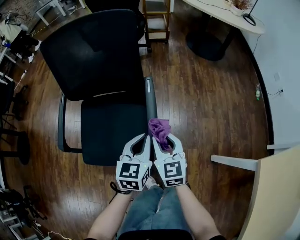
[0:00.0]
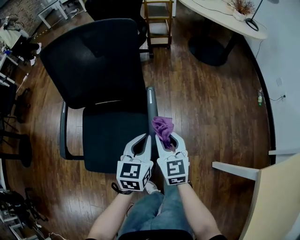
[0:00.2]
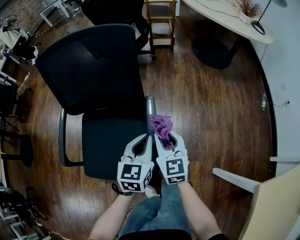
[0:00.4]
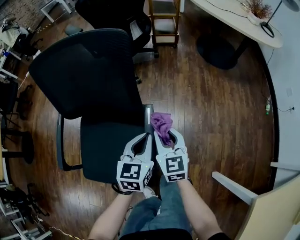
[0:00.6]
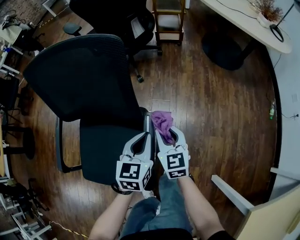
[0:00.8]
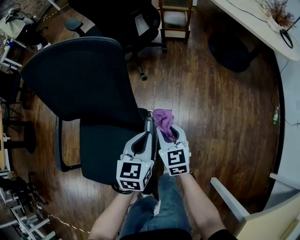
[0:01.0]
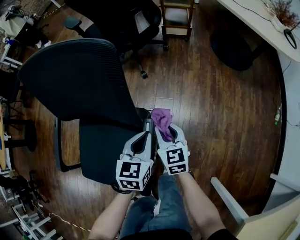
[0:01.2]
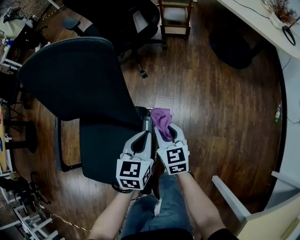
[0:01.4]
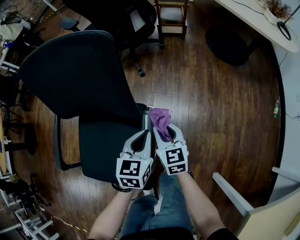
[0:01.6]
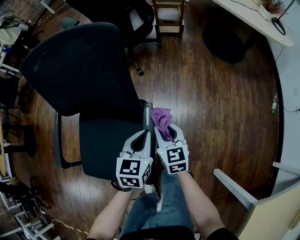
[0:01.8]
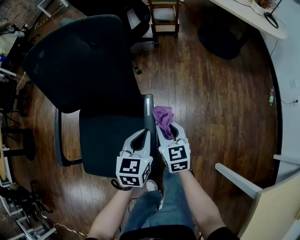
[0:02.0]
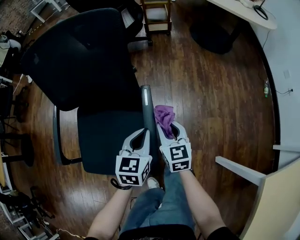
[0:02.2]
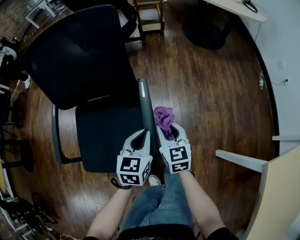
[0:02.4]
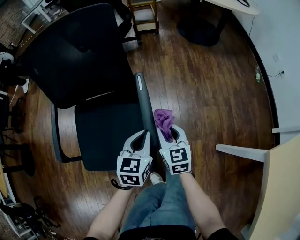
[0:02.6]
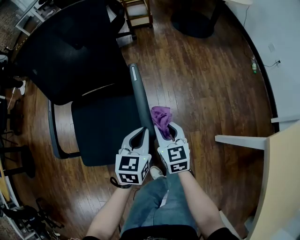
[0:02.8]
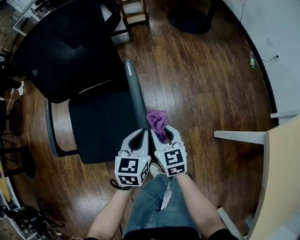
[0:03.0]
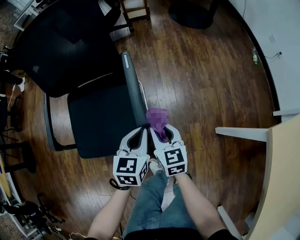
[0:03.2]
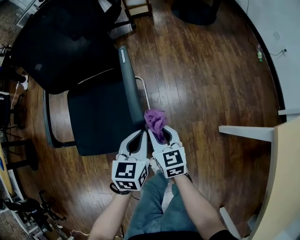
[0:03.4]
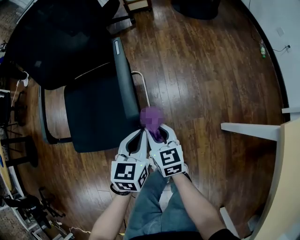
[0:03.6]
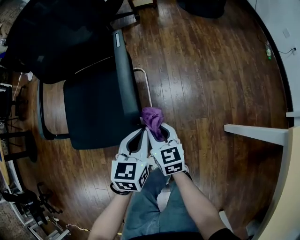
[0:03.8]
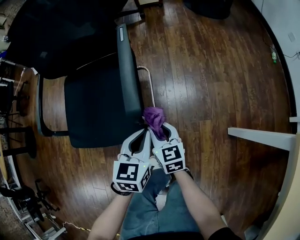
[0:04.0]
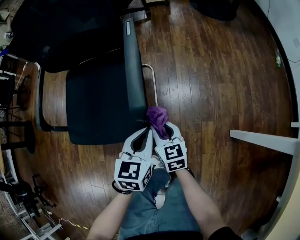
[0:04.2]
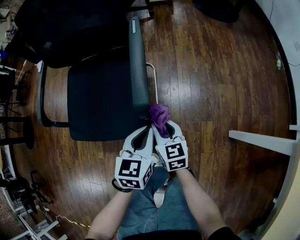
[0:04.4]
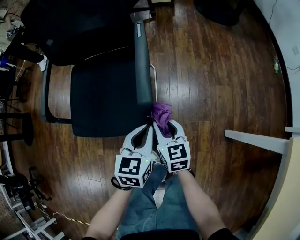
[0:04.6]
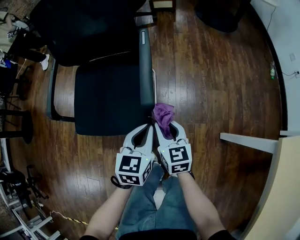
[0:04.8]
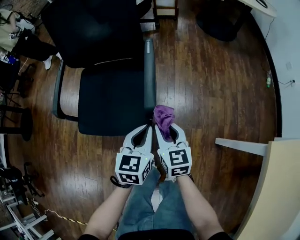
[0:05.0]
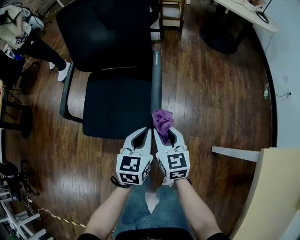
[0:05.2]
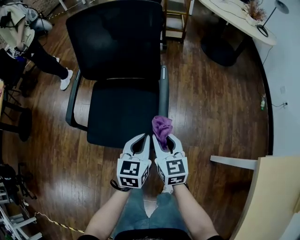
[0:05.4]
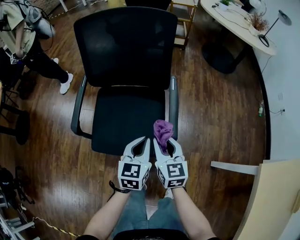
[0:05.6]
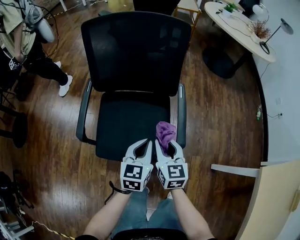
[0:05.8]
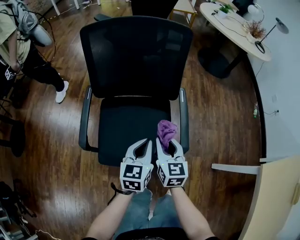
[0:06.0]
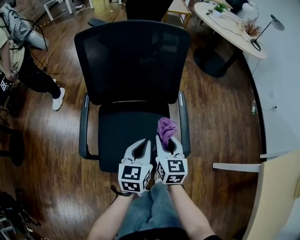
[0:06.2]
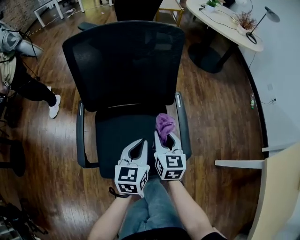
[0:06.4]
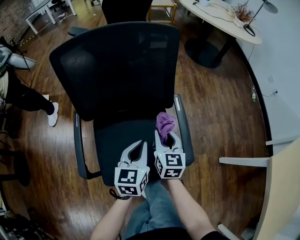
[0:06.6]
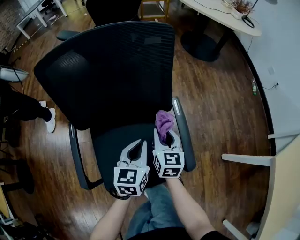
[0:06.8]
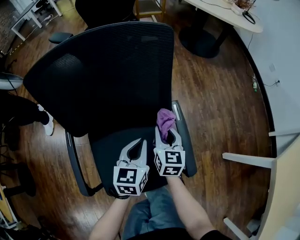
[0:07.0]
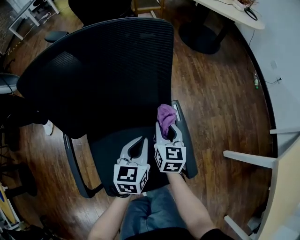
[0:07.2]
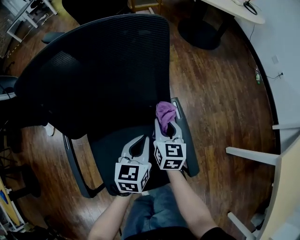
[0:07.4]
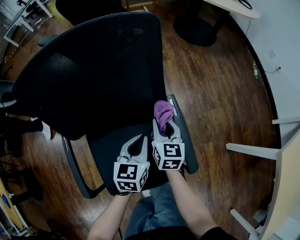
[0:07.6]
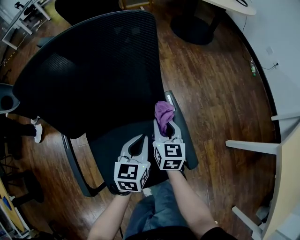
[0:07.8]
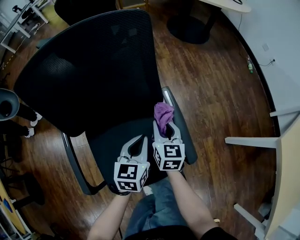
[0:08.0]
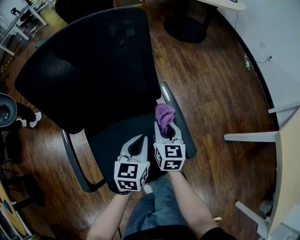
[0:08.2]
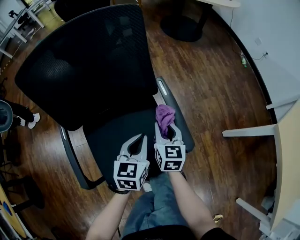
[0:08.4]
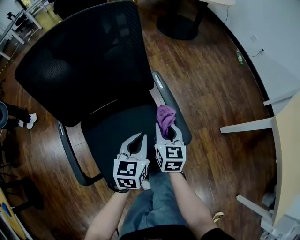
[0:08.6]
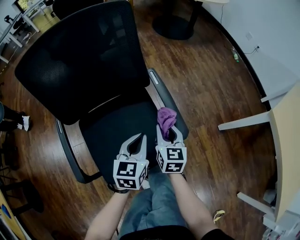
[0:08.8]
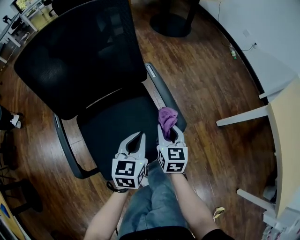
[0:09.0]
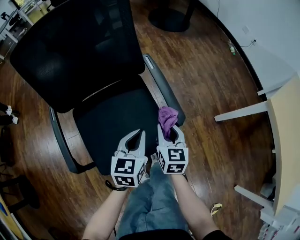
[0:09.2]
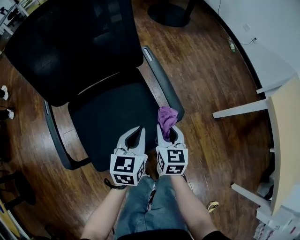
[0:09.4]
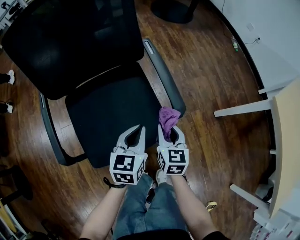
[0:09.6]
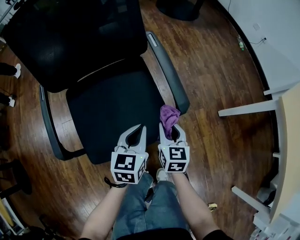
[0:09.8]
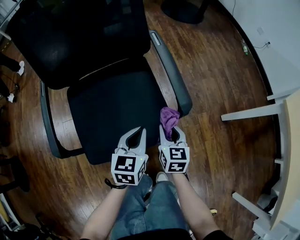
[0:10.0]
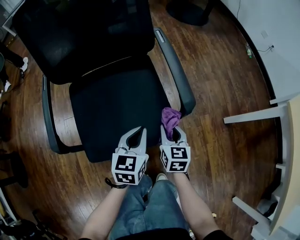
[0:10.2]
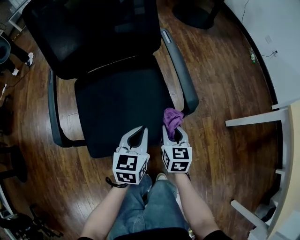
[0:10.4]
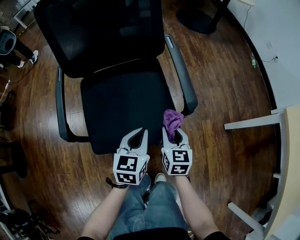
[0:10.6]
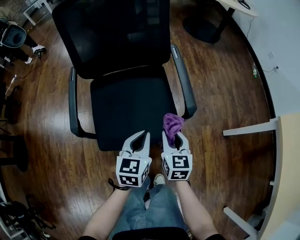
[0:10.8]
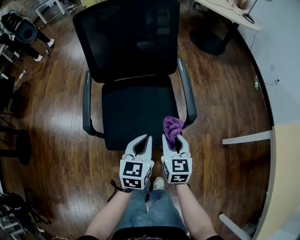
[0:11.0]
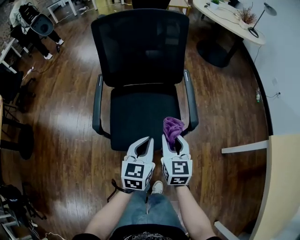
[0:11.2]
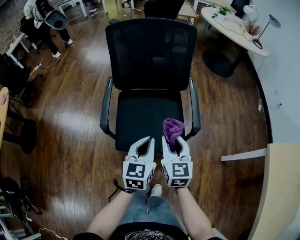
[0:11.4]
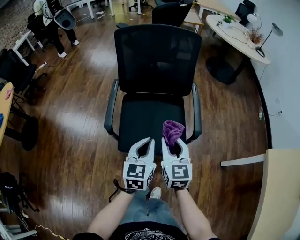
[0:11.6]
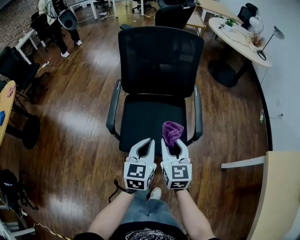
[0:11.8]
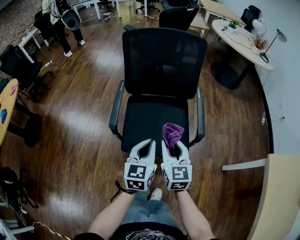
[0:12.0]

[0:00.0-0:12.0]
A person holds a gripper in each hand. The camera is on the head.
0:00.0 to 0:01.6: Both grippers move forward, about 20 cm.
0:01.6 to 0:03.0: The grippers both shift backward by some 25 cm.
0:03.0 to 0:04.4: The right gripper moves downward, some 15 cm, while the left gripper moves downward and backward, about 15 cm.
0:04.4 to 0:06.0: The left gripper heads upward, to the left and forward, covering approximately 30 cm; the right gripper goes approximately 30 cm upward and to the left.
0:06.0 to 0:07.6: The right gripper travels forward and downward by approximately 25 cm, and turns by approximately 20 degrees, while the left gripper travels forward by some 20 cm.
0:07.6 to 0:09.0: The right gripper goes about 20 cm backward and to the right. Meanwhile the left gripper moves backward, about 15 cm.
0:09.0 to 0:10.4: Both grippers travel together downward and backward, approximately 15 cm.
0:10.4 to 0:12.0: The right gripper goes about 35 cm upward and to the left, and rotates about 30 degrees. Meanwhile the left gripper travels upward by about 25 cm, and turns by roughly 20 degrees.

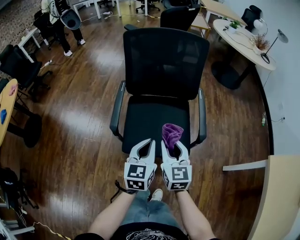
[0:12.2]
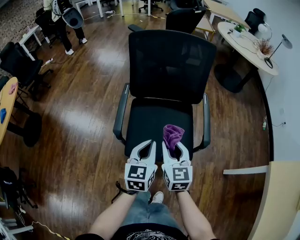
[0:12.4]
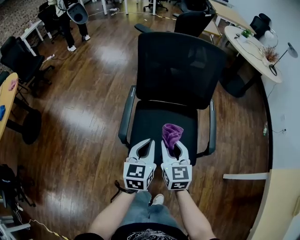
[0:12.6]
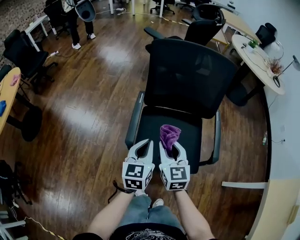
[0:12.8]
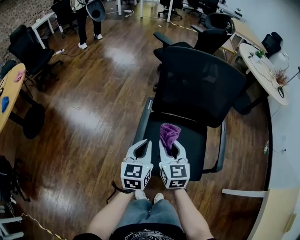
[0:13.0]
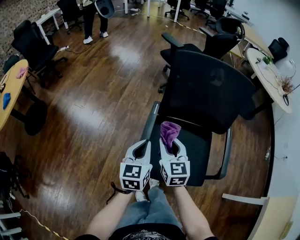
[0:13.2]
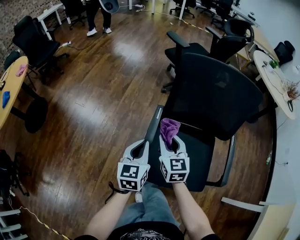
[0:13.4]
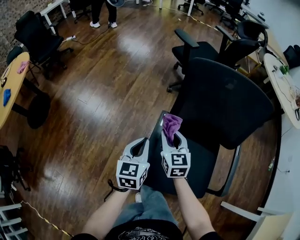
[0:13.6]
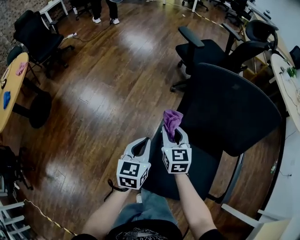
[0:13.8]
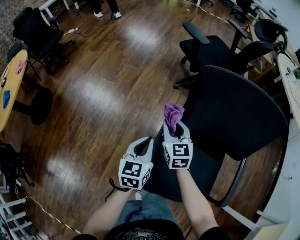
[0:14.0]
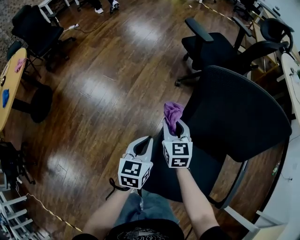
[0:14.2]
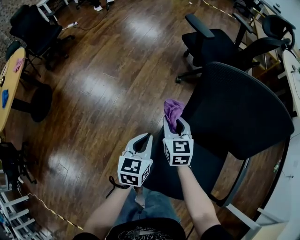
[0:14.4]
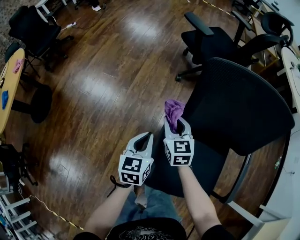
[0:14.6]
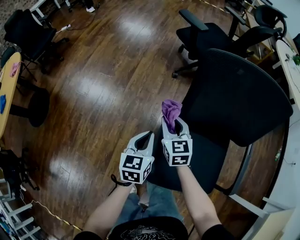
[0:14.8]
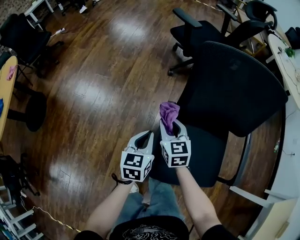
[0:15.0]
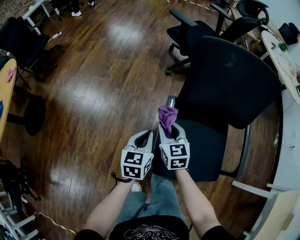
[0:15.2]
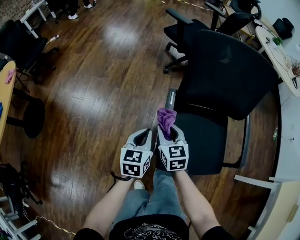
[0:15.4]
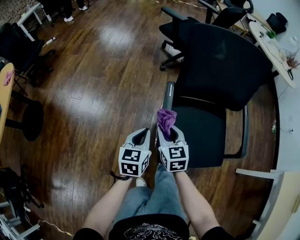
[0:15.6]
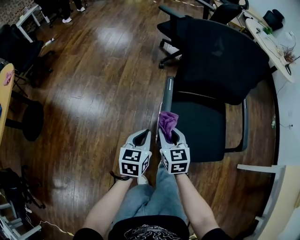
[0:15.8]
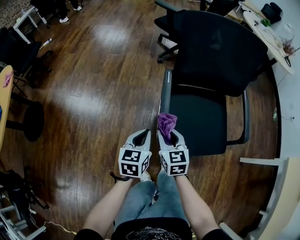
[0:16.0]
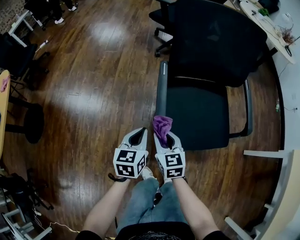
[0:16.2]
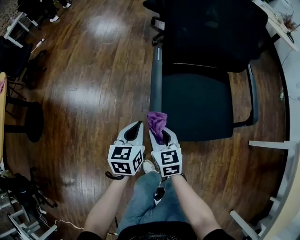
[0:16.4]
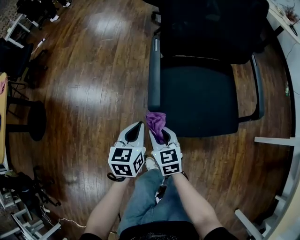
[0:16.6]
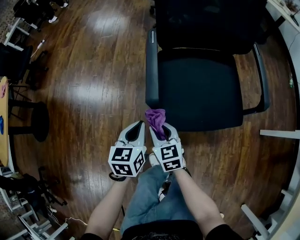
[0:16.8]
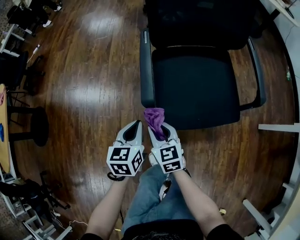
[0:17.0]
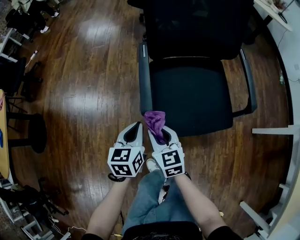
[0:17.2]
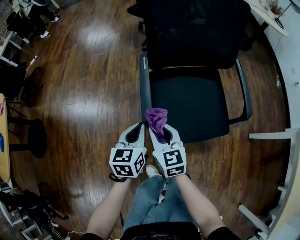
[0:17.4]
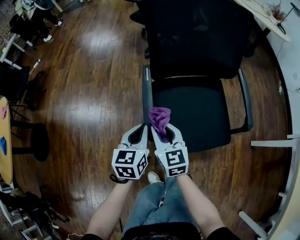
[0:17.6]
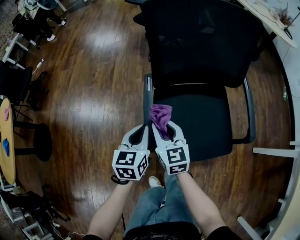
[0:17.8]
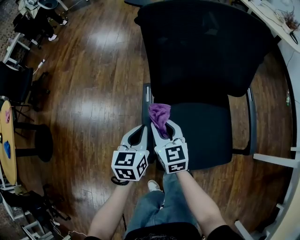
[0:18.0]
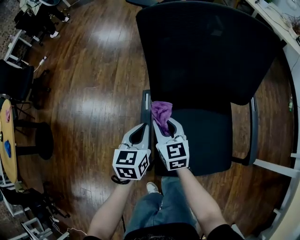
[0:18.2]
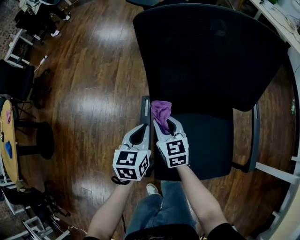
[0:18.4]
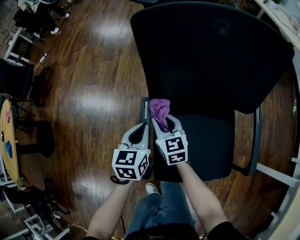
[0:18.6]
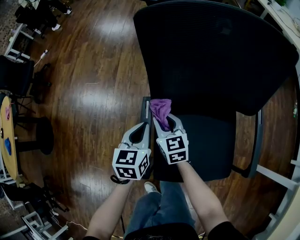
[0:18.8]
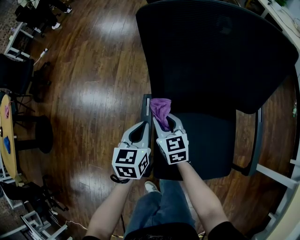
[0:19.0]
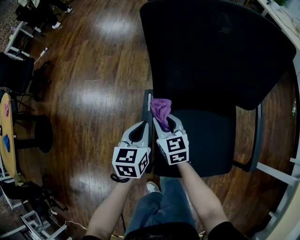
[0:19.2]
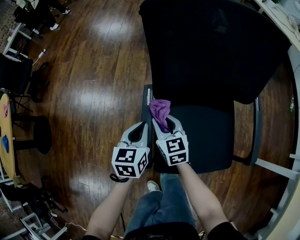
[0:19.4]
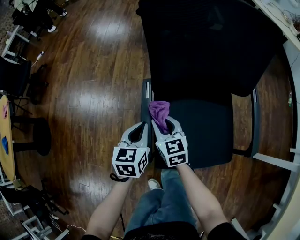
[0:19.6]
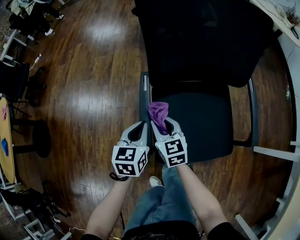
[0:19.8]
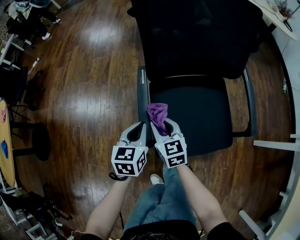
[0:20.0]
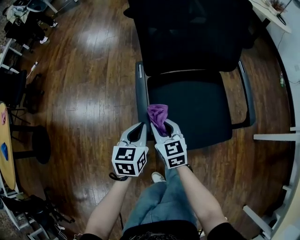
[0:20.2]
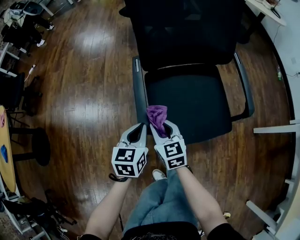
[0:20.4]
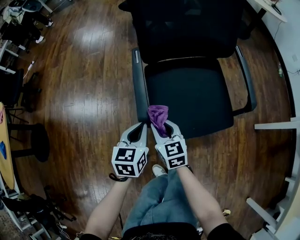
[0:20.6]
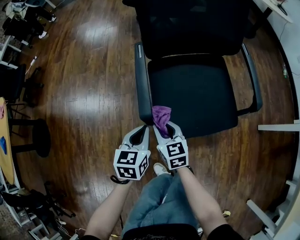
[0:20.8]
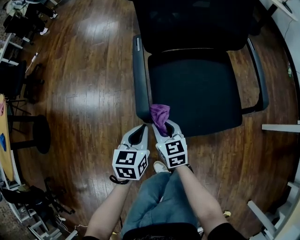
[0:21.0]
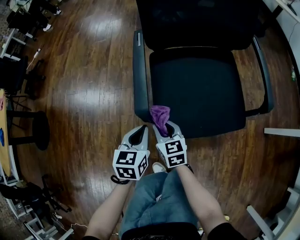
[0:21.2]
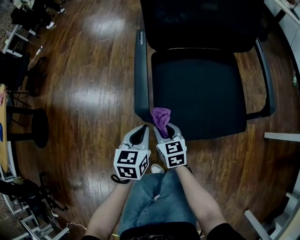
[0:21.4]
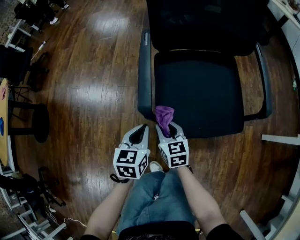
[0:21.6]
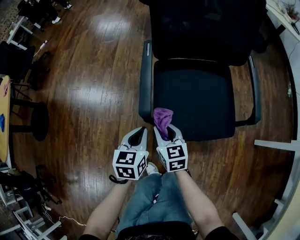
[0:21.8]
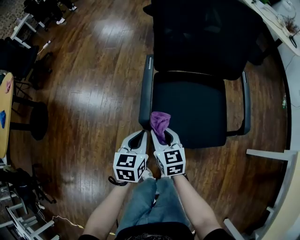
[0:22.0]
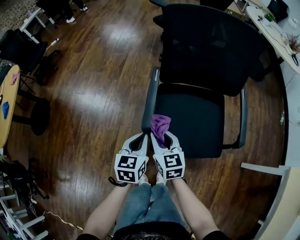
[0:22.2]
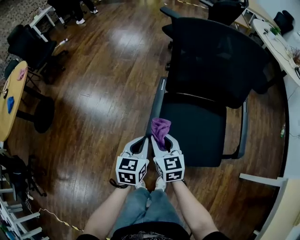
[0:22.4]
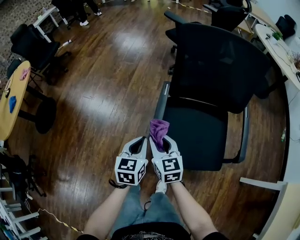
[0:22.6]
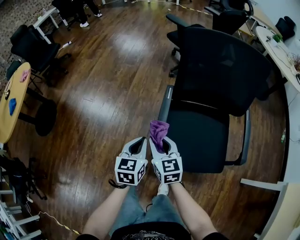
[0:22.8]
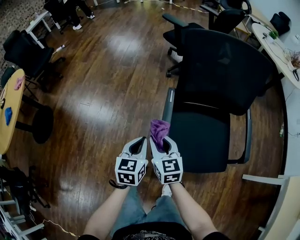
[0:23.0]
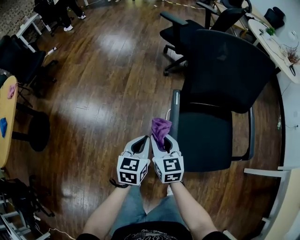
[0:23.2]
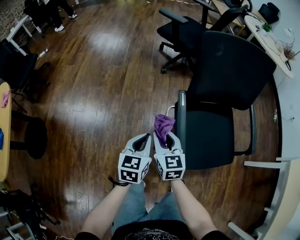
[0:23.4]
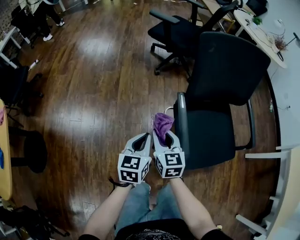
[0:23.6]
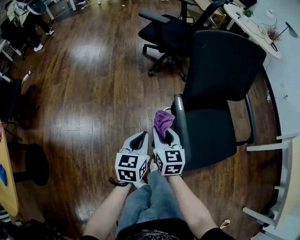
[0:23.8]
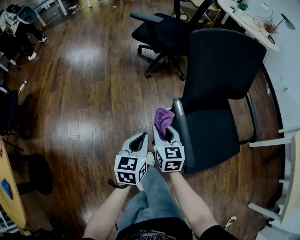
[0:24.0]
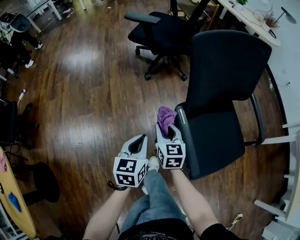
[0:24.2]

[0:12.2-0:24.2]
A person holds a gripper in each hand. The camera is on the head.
0:12.2 to 0:13.8: The two grippers go roughly 40 cm forward and to the left.
0:13.8 to 0:15.2: The left gripper heads downward, covering roughly 5 cm. The right gripper heads backward and to the left, covering some 10 cm.
0:15.2 to 0:16.6: Both grippers move backward and downward, some 25 cm.
0:16.6 to 0:18.2: Both grippers move forward, roughly 25 cm.
0:18.2 to 0:19.8: Both grippers move backward, roughly 5 cm.
0:19.8 to 0:21.2: The grippers both shift backward and downward by approximately 20 cm.
0:21.2 to 0:22.6: Both grippers travel together upward, approximately 20 cm.
0:22.6 to 0:24.2: The right gripper moves approximately 30 cm, and changes its angle by approximately 40 degrees, while the left gripper moves roughly 30 cm, and swivels some 30 degrees.
